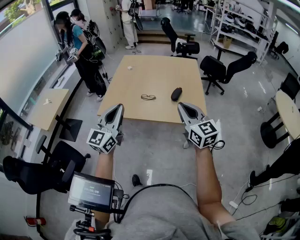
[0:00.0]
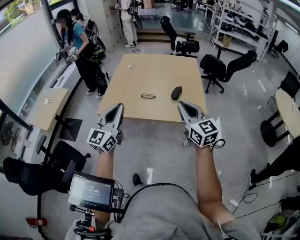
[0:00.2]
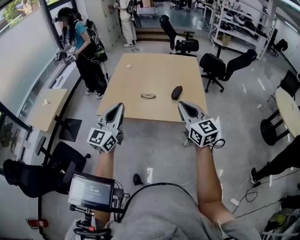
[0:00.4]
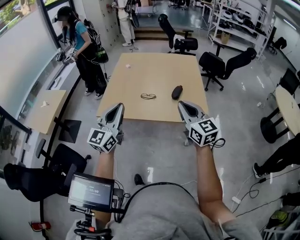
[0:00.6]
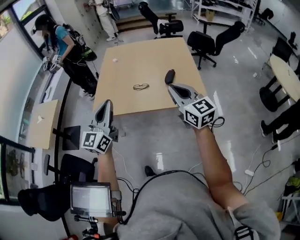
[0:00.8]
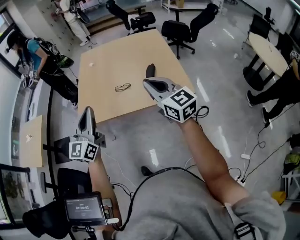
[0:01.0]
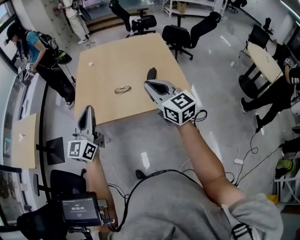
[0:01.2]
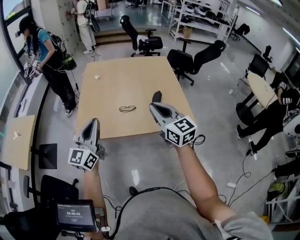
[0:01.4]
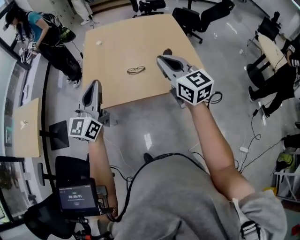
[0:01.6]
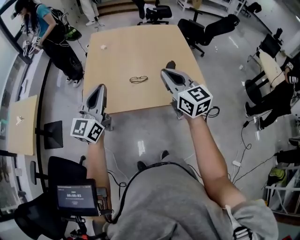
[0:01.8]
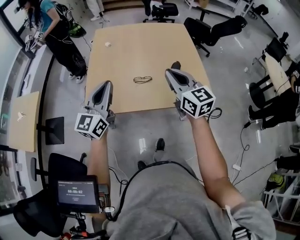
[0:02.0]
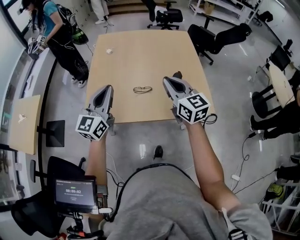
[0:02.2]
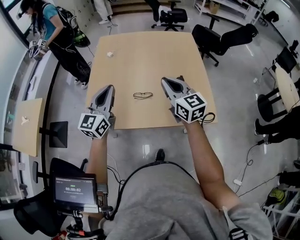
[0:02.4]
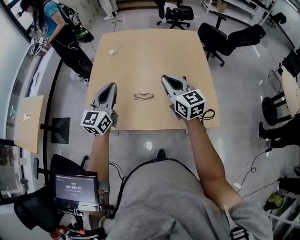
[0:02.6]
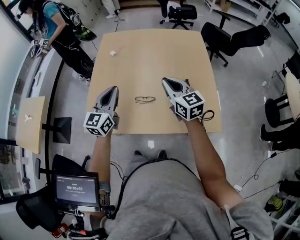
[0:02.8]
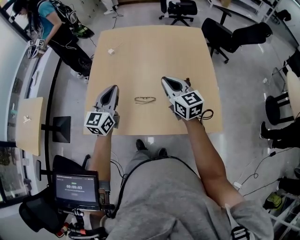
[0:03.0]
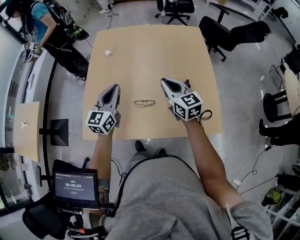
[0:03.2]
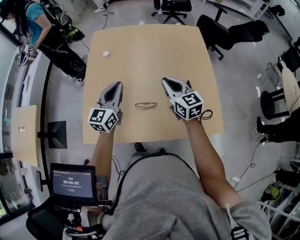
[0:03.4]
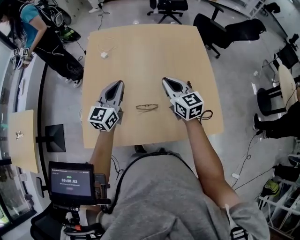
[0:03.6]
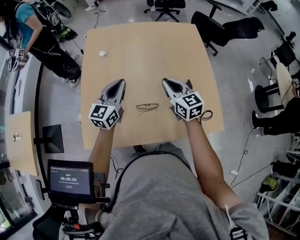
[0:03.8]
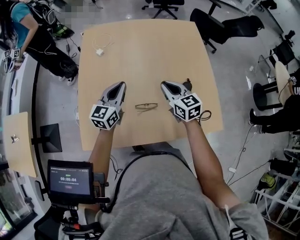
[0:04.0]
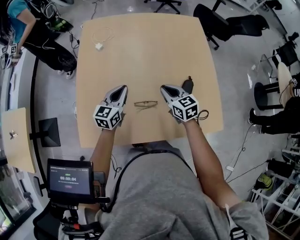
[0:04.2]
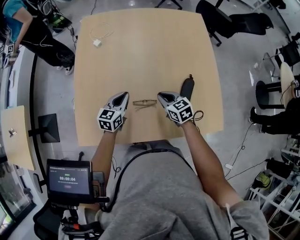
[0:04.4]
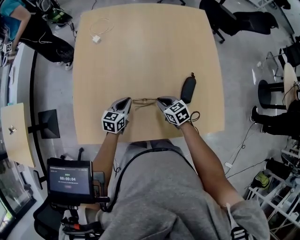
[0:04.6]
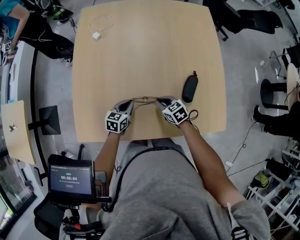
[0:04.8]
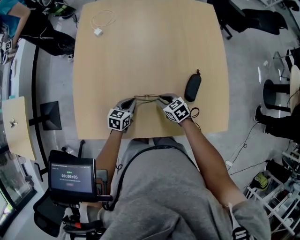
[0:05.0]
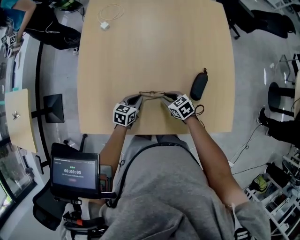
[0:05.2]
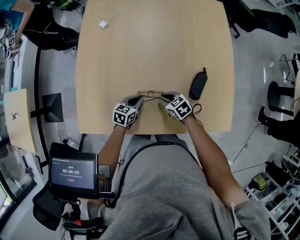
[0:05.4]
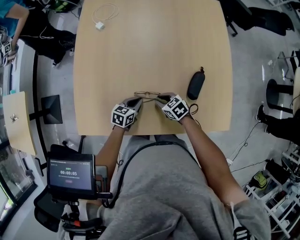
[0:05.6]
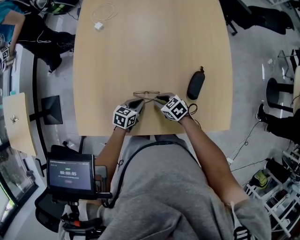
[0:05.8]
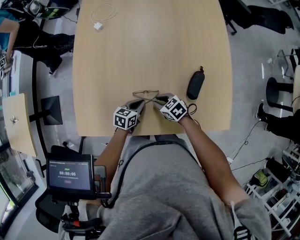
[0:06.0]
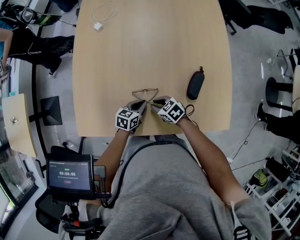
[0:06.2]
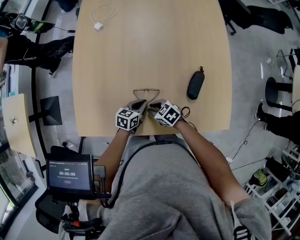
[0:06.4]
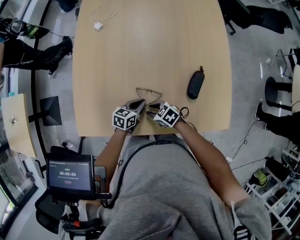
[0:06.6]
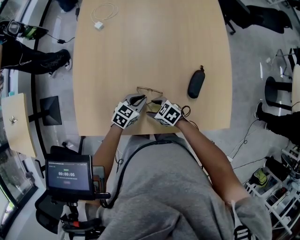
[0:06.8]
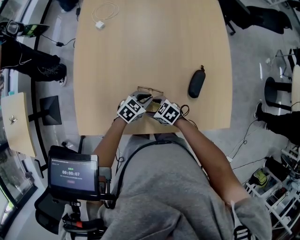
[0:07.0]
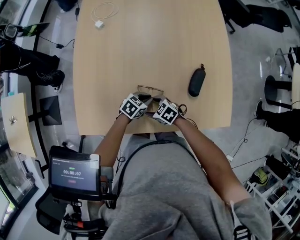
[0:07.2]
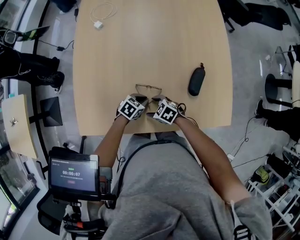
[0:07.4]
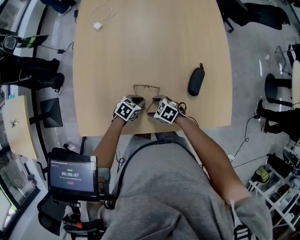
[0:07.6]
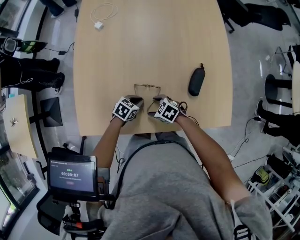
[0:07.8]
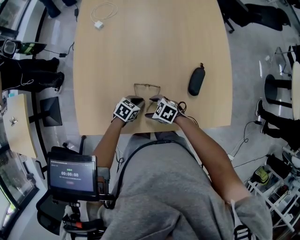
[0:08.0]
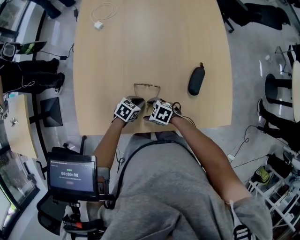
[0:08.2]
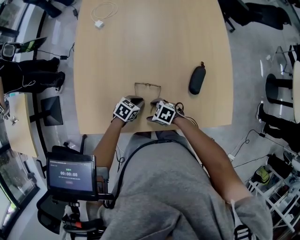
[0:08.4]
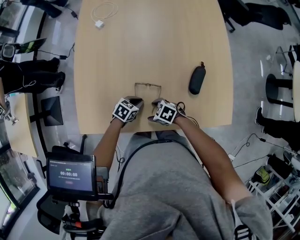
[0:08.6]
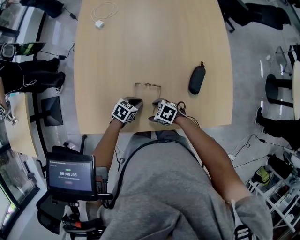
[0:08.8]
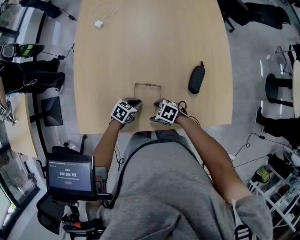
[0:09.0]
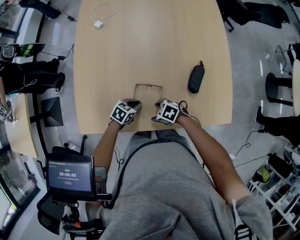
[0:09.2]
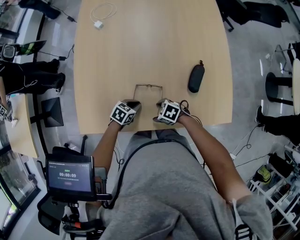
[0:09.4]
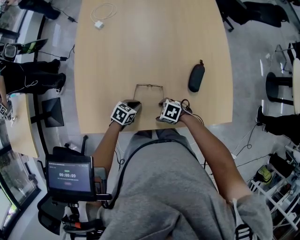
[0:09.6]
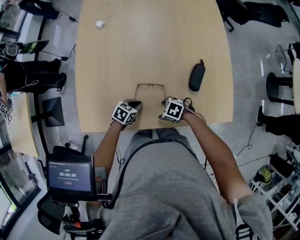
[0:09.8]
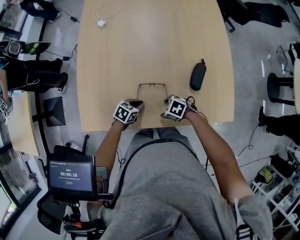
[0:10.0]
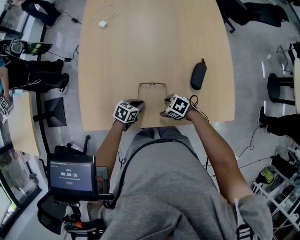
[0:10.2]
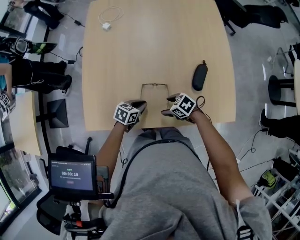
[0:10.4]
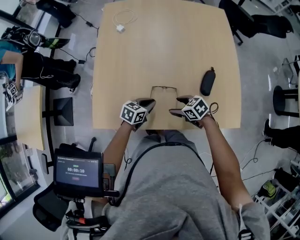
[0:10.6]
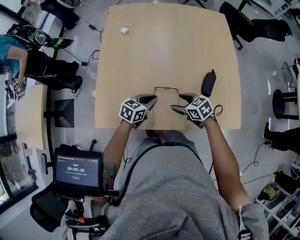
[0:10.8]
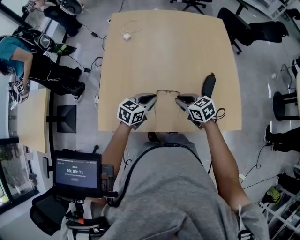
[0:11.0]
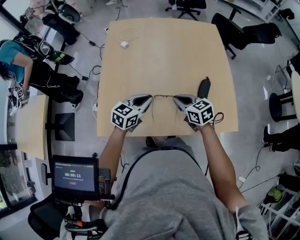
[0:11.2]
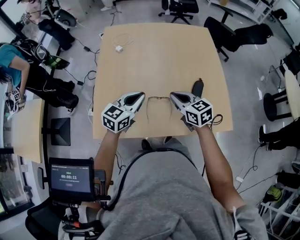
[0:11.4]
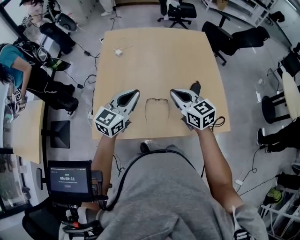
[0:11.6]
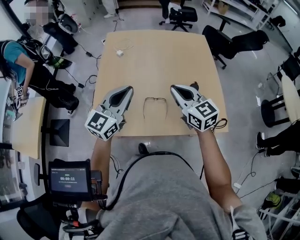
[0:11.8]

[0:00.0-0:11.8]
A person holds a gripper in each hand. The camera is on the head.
0:00.0 to 0:01.4: The left gripper is displaced forward, to the left and downward by approximately 20 cm; the right gripper shifts roughly 20 cm forward and to the left.
0:01.4 to 0:03.0: Both grippers travel together forward, some 30 cm.
0:03.0 to 0:04.4: The right gripper shifts about 20 cm downward, and changes its angle by roughly 30 degrees. The left gripper travels downward and forward by about 20 cm, and swivels some 30 degrees.
0:04.4 to 0:06.0: The left gripper travels downward and to the right by approximately 15 cm, and changes its angle by some 30 degrees. Meanwhile the right gripper is displaced downward by about 15 cm, and turns by approximately 30 degrees.
0:06.0 to 0:07.4: The right gripper moves approximately 5 cm, and opens. The left gripper rotates roughly 30 degrees.
0:07.4 to 0:08.8: The grippers stay close to where they were, moving slightly.
0:08.8 to 0:10.4: The left gripper moves about 5 cm, while the right gripper moves some 5 cm.
0:10.4 to 0:11.8: The grippers both shift upward by about 35 cm. The right gripper angles its fingers upward, by about 40 degrees, and closes its fingers, while the left gripper tilts its fingers about 40 degrees upward.

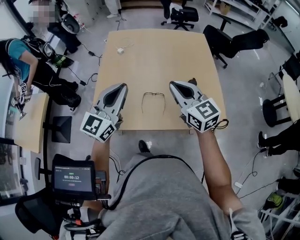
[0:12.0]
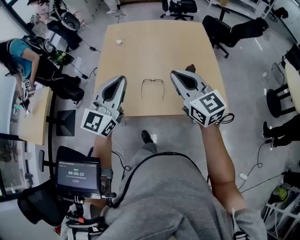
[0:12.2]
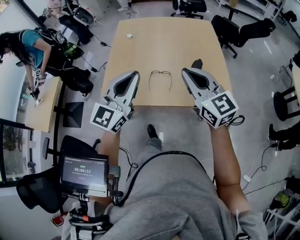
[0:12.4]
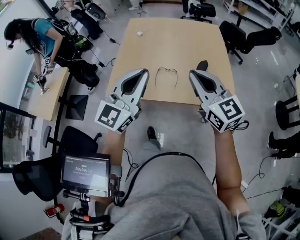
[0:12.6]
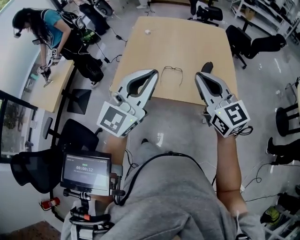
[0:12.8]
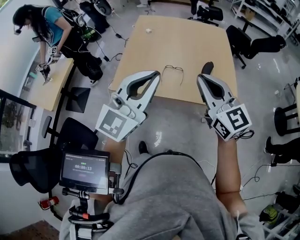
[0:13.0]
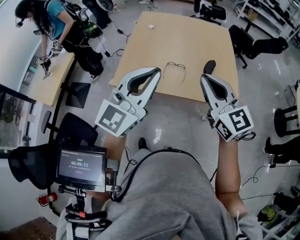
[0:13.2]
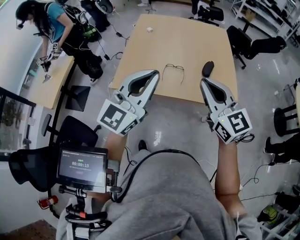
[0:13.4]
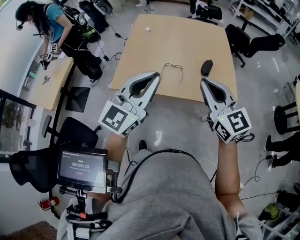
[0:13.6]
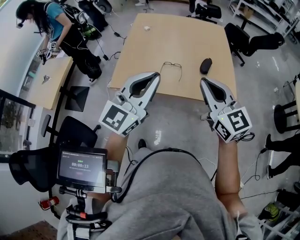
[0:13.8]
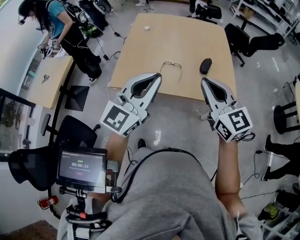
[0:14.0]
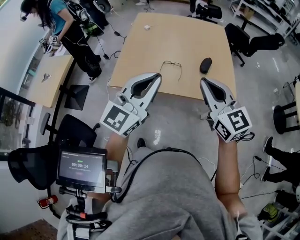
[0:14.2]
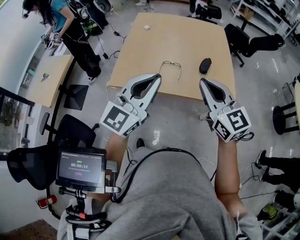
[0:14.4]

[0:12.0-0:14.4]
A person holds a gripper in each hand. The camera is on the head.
0:12.0 to 0:13.2: The grippers both shift backward by about 25 cm.
0:13.2 to 0:14.4: The grippers make only small movements.

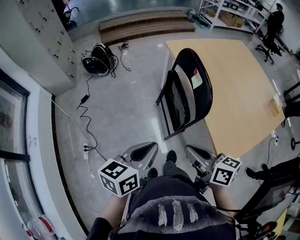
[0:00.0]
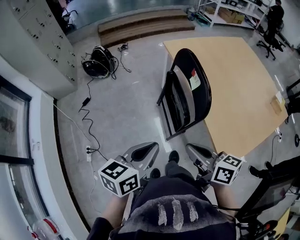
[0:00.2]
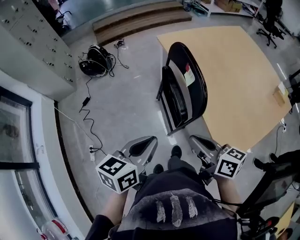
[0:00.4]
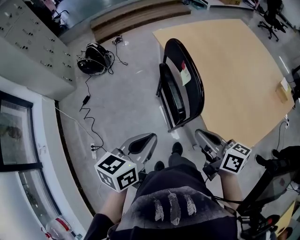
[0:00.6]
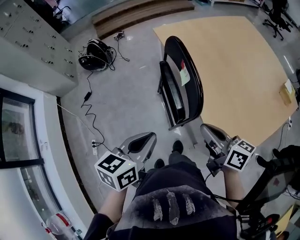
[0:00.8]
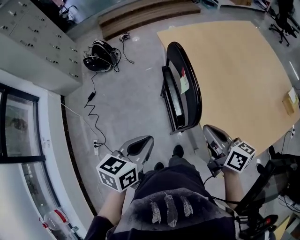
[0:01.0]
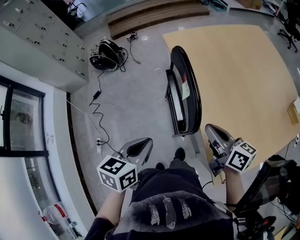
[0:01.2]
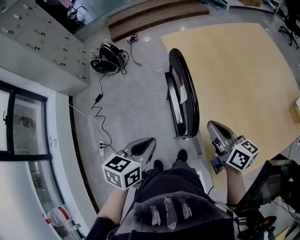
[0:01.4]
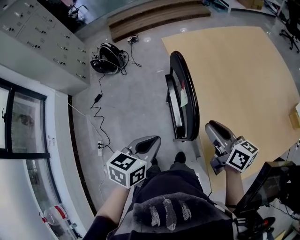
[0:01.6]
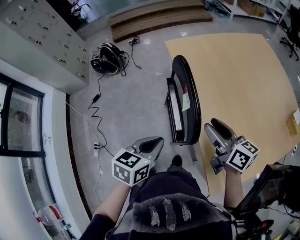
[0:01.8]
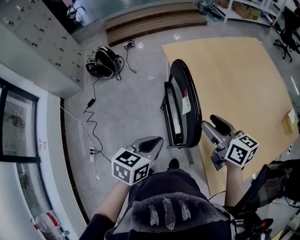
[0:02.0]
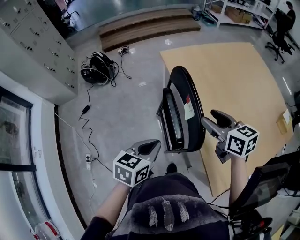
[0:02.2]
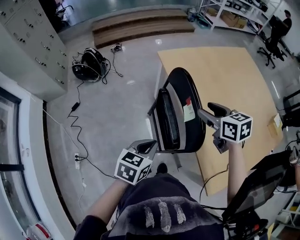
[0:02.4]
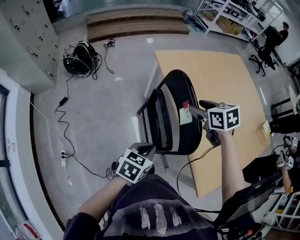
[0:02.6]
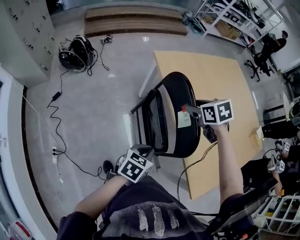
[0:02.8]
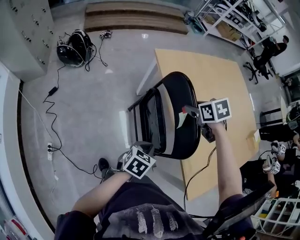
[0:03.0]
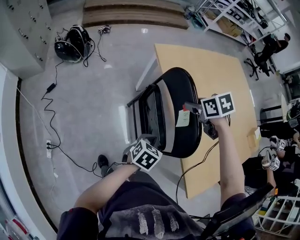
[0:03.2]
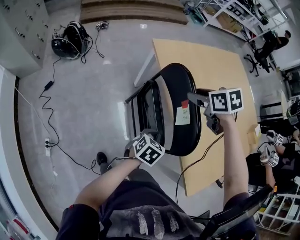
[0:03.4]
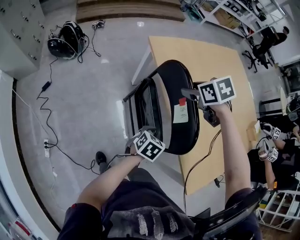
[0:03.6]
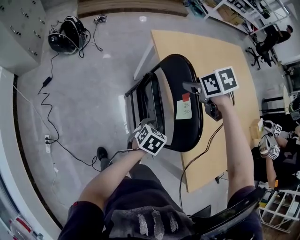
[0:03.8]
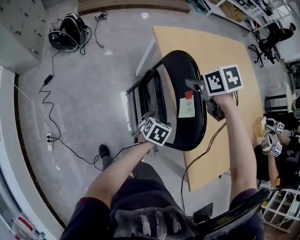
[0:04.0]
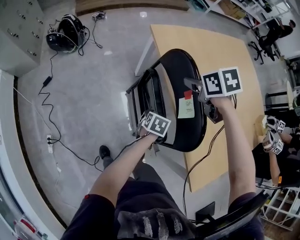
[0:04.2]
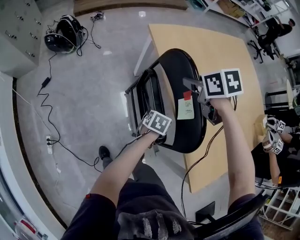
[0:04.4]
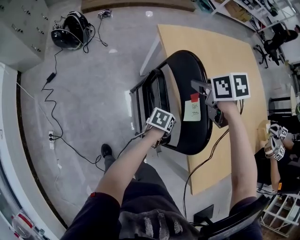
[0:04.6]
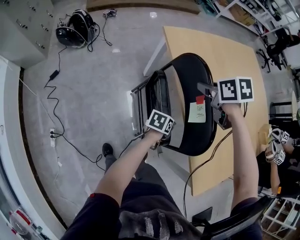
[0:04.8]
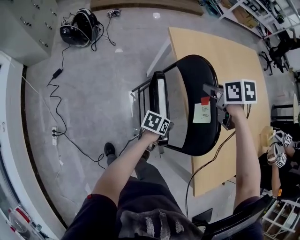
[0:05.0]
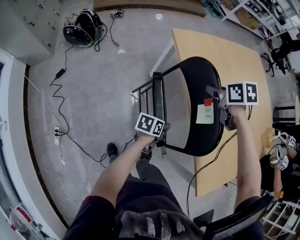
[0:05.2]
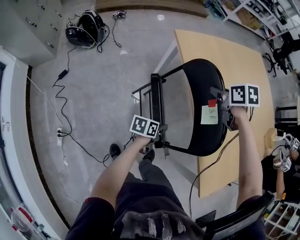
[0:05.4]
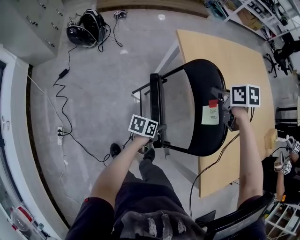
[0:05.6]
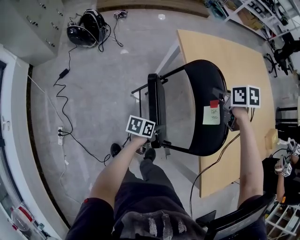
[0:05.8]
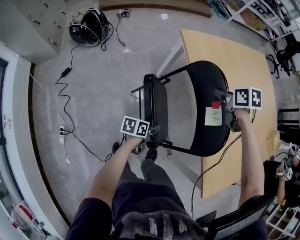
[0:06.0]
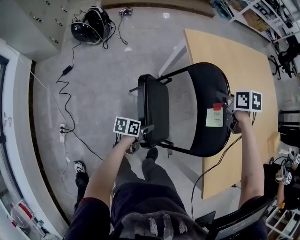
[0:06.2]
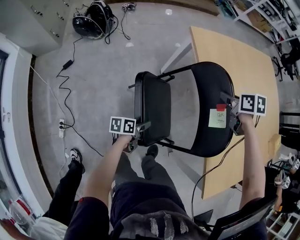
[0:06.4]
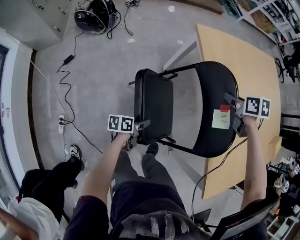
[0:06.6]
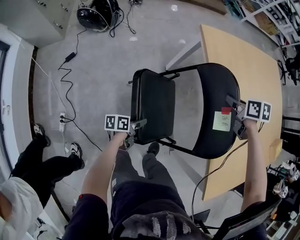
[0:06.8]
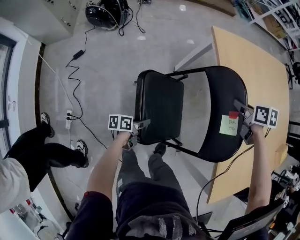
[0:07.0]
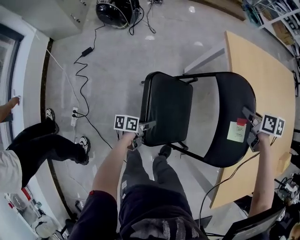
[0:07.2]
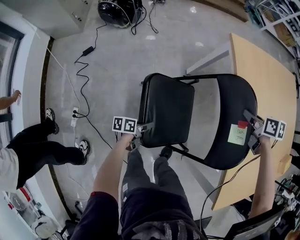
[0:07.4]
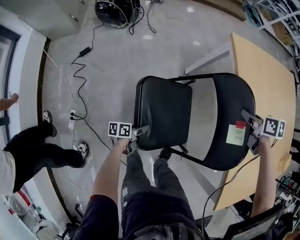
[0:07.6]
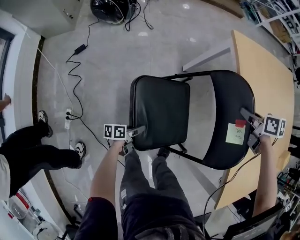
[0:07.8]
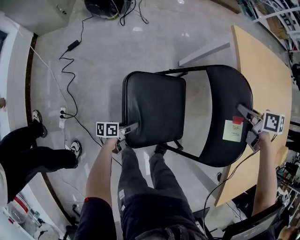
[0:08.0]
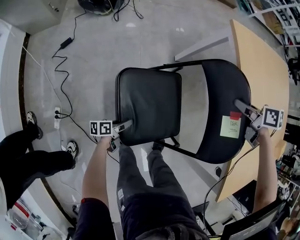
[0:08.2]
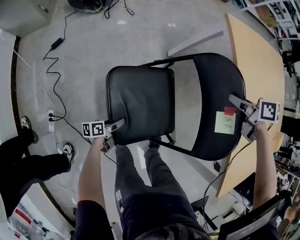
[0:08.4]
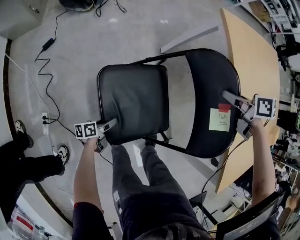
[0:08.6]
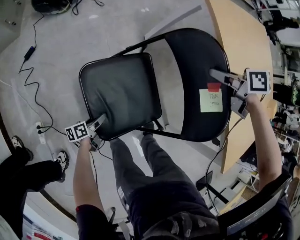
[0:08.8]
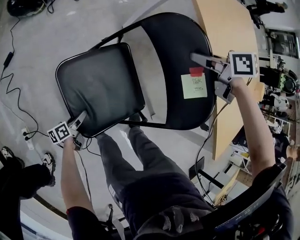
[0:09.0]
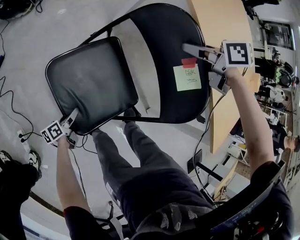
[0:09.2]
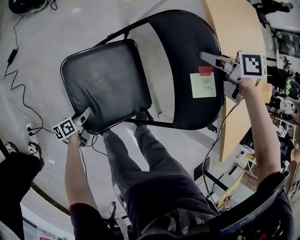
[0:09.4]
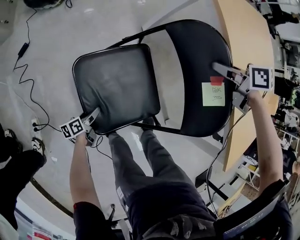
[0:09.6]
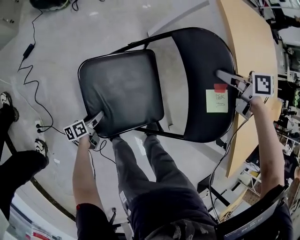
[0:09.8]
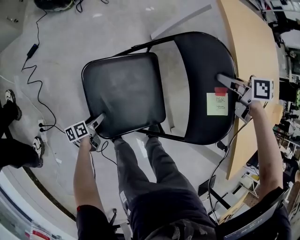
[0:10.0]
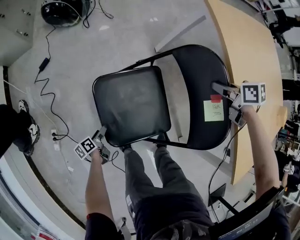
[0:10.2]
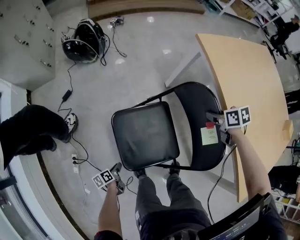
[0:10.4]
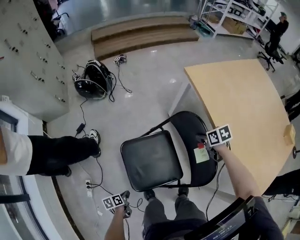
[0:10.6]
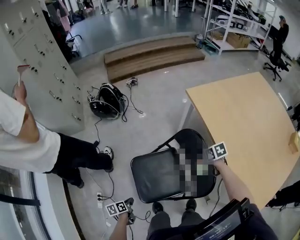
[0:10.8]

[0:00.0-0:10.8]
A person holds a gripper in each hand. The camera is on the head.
0:00.0 to 0:01.6: The right gripper goes some 30 cm to the right and forward. Meanwhile the left gripper goes approximately 20 cm forward and to the right.
0:01.6 to 0:03.0: The right gripper heads forward and to the left, covering some 20 cm, points its fingers roughly 50 degrees further downward, and opens its fingers; the left gripper is displaced downward by some 15 cm.
0:03.0 to 0:04.6: The left gripper travels downward, forward and to the right by approximately 20 cm, turns by roughly 20 degrees, and opens up.
0:04.6 to 0:06.2: The left gripper goes about 20 cm to the left and backward, and turns by roughly 30 degrees, while the right gripper goes some 5 cm downward.
0:06.2 to 0:07.8: The left gripper travels to the left, downward and backward by approximately 25 cm, and turns by approximately 20 degrees. Meanwhile the right gripper goes roughly 10 cm downward and to the left.
0:07.8 to 0:09.2: The left gripper moves downward and to the left, approximately 15 cm; the right gripper goes approximately 10 cm to the left and downward.
0:09.2 to 0:10.8: The right gripper moves about 5 cm, and opens up; the left gripper heads upward, covering some 20 cm, changes its angle by about 30 degrees, and closes its fingers.
